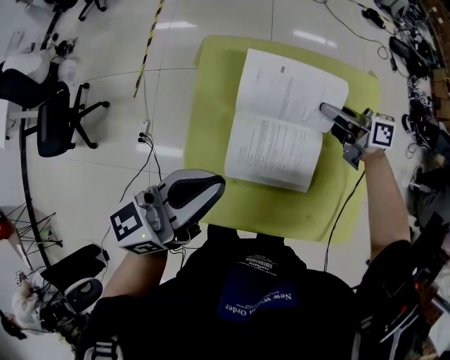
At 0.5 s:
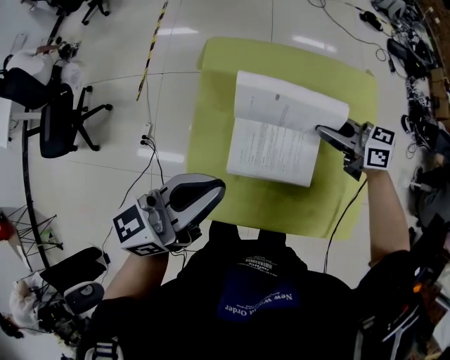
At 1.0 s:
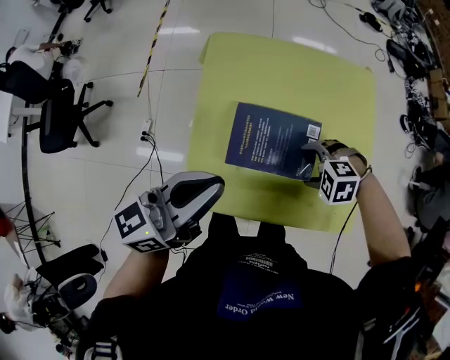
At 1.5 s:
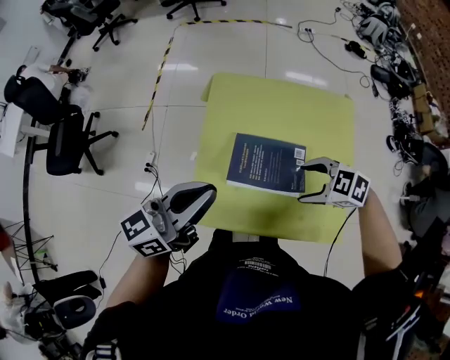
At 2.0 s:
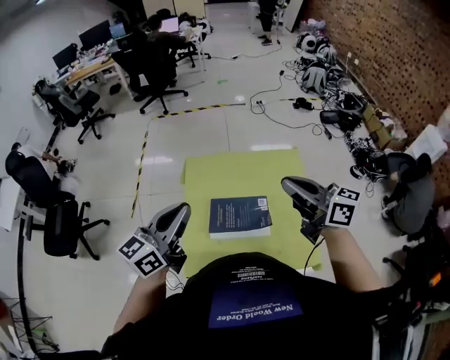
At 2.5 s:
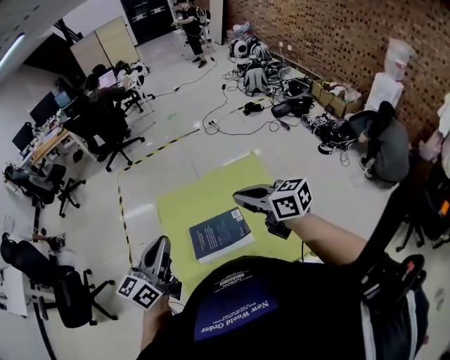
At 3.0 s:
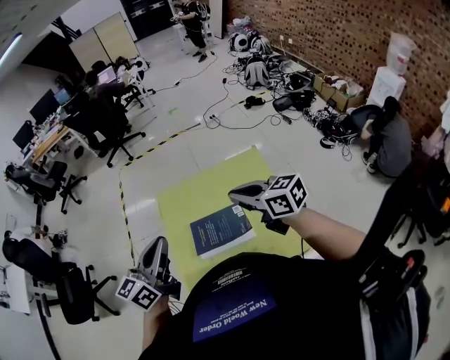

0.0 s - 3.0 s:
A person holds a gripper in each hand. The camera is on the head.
0.0 s - 1.5 s: The left gripper shifts by approximately 10 cm. The right gripper travels downward and back again, some 10 cm each way, tilts its fingers roughly 40 degrees downward, and opens.
1.5 s - 3.0 s: The right gripper is displaced upward by approximately 20 cm, tips its fingers upward by about 40 degrees, and closes its fingers. Meanwhile the left gripper goes approximately 10 cm upward.

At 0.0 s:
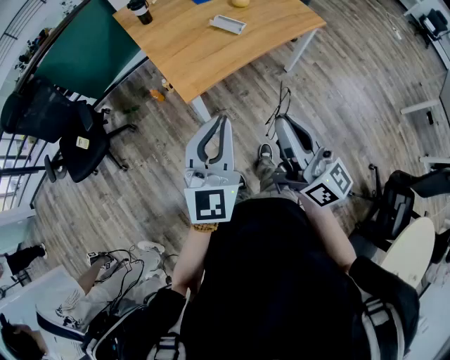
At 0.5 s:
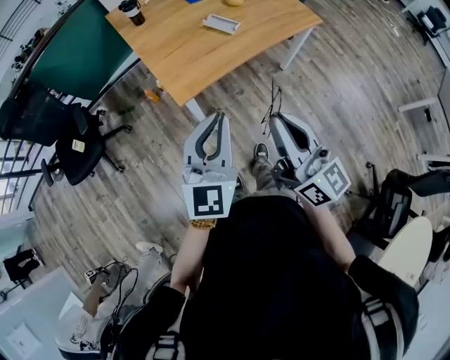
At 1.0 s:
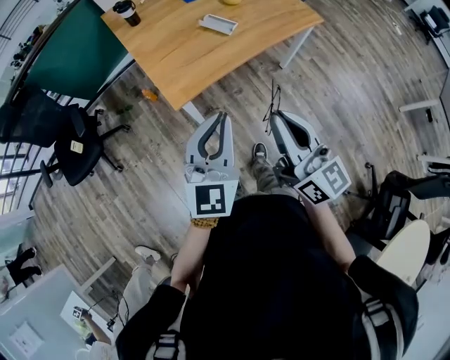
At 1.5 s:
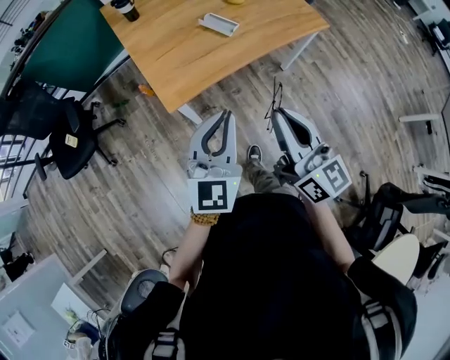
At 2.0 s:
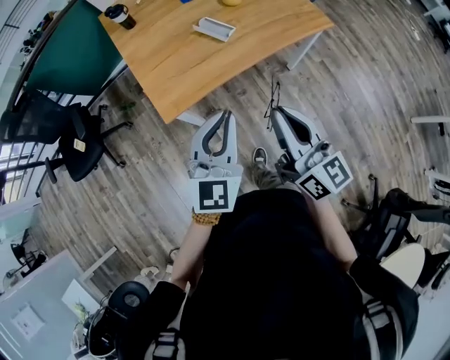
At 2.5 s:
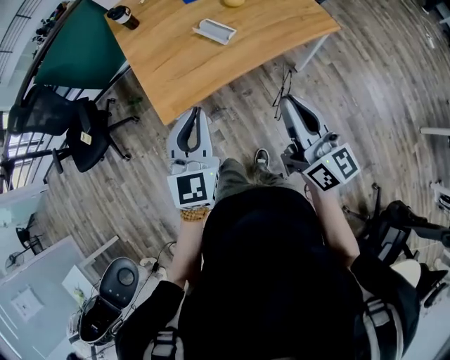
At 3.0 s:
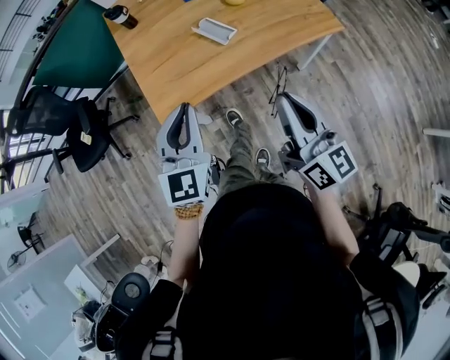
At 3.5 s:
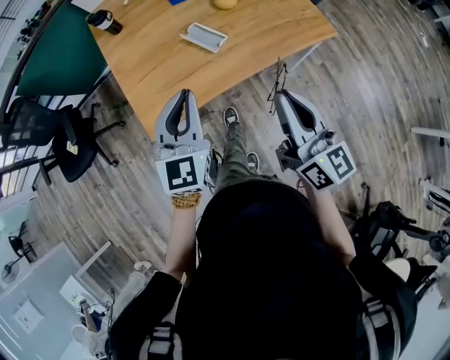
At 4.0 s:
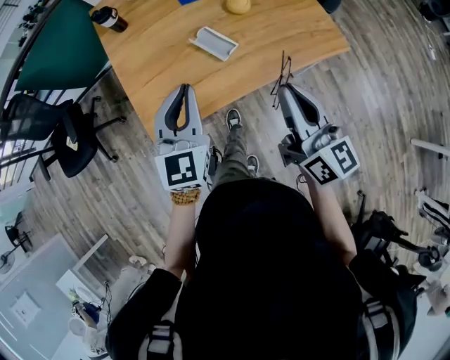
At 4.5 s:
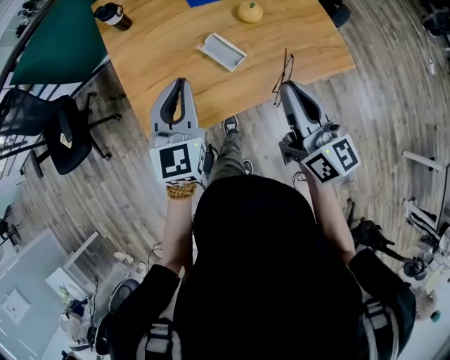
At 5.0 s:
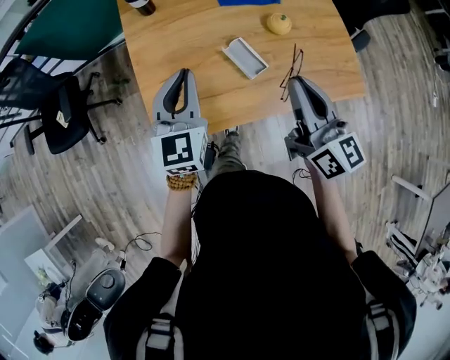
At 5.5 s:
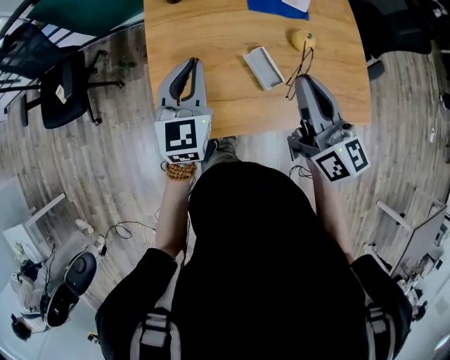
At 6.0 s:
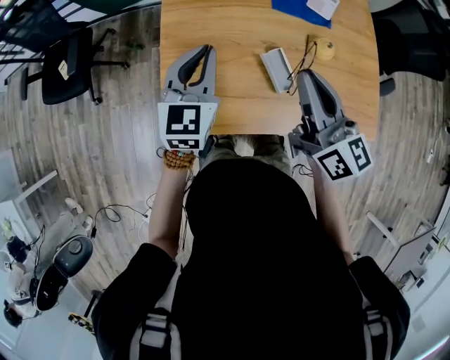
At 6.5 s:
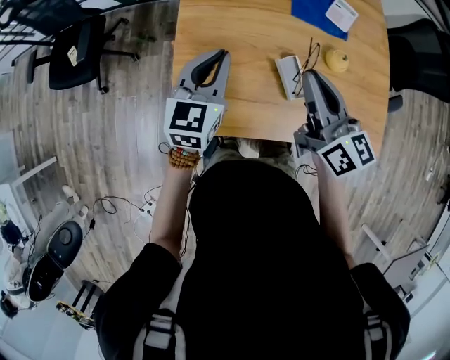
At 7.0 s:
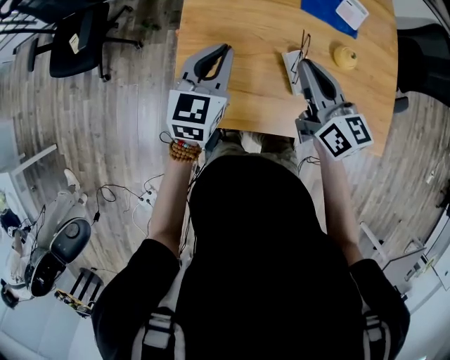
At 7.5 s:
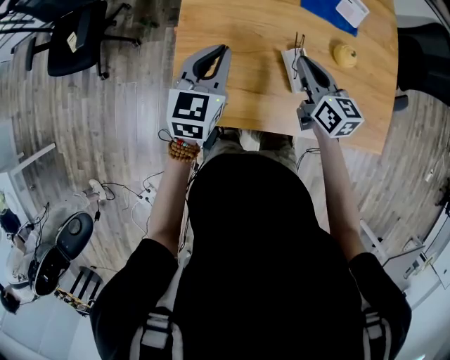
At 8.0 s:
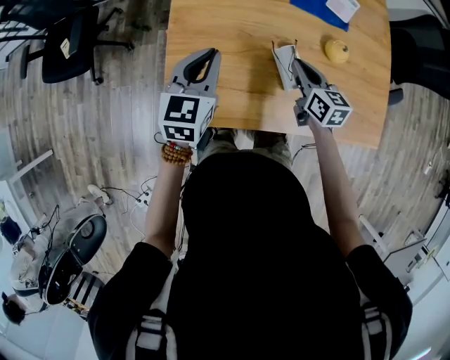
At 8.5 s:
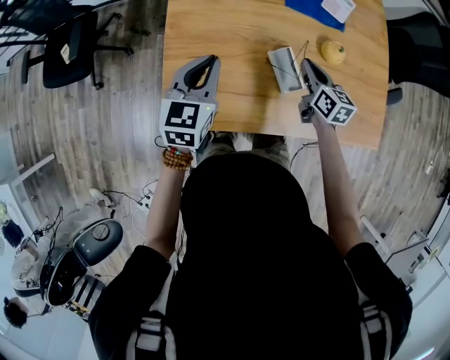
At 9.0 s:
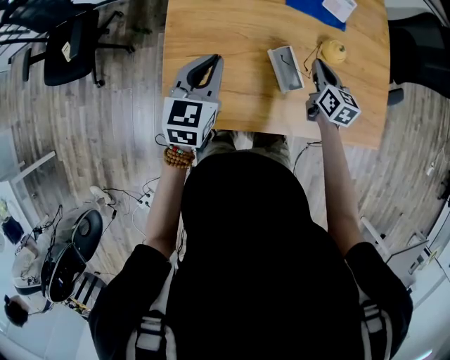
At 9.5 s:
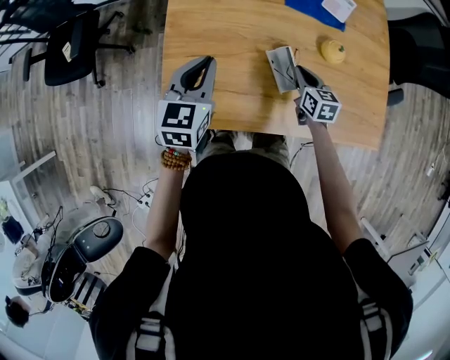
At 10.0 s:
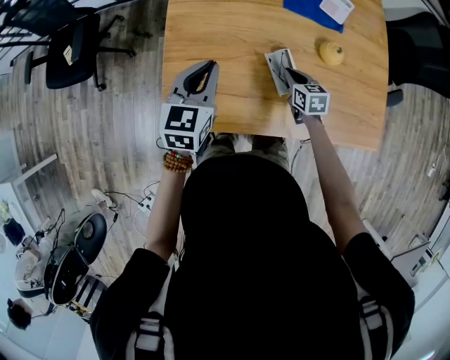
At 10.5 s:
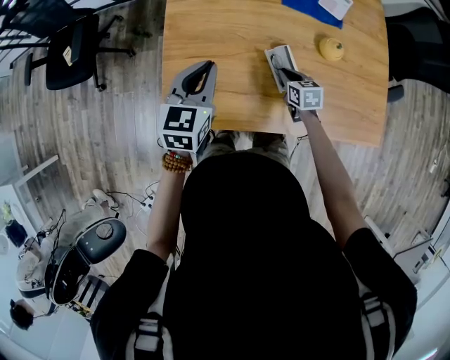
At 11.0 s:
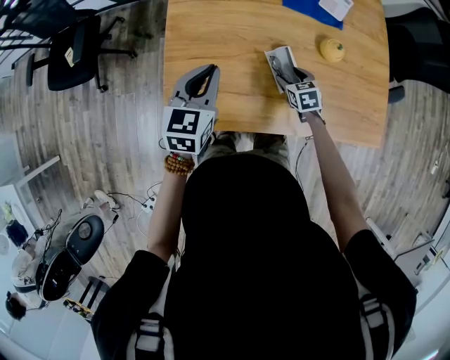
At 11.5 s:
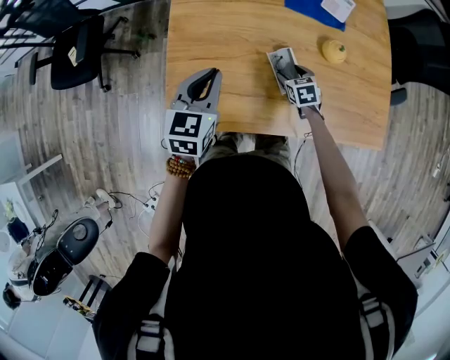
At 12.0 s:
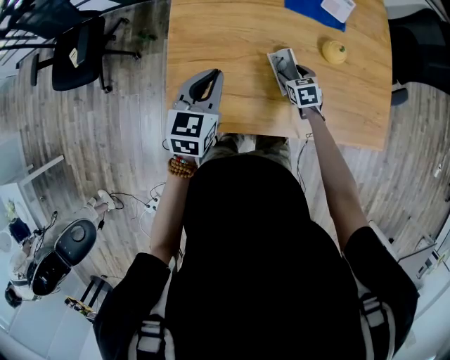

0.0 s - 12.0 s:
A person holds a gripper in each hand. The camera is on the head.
0.0 s - 2.0 s: The right gripper is displaced forward and to the right by approximately 20 cm, while the left gripper heads to the right and forward, covering roughly 20 cm.
2.0 s - 4.0 s: The left gripper goes about 25 cm forward; the right gripper shifts roughly 25 cm forward and to the right.
4.0 s - 6.0 s: The grippers both shift forward and to the left by roughly 25 cm. The right gripper swivels approximately 20 degrees.
6.0 s - 8.0 s: The left gripper is displaced downward by about 5 cm; the right gripper goes some 25 cm downward, and turns by some 30 degrees.
8.0 s - 10.0 s: The right gripper moves downward, about 10 cm.
10.0 s - 12.0 s: The right gripper opens its fingers.

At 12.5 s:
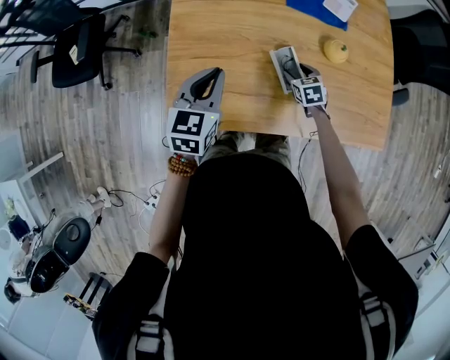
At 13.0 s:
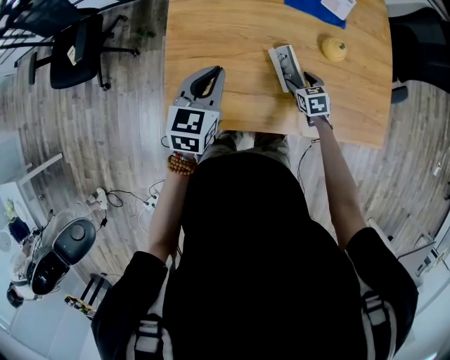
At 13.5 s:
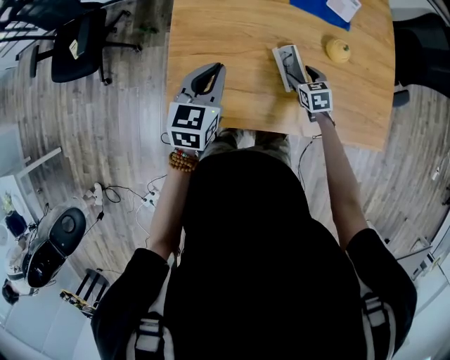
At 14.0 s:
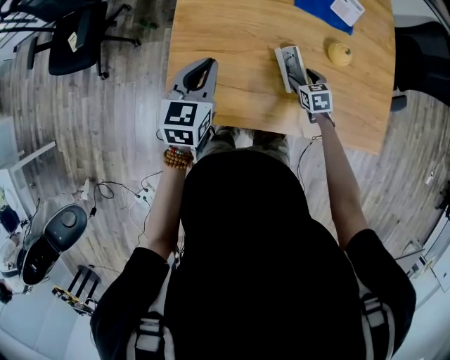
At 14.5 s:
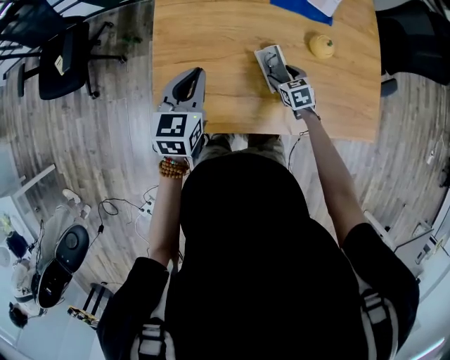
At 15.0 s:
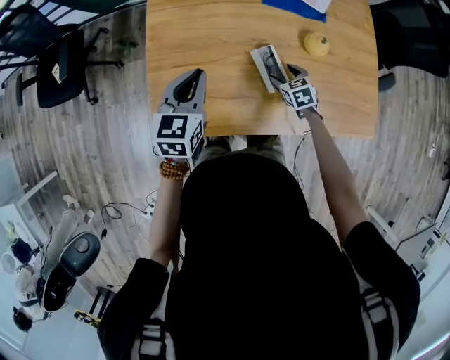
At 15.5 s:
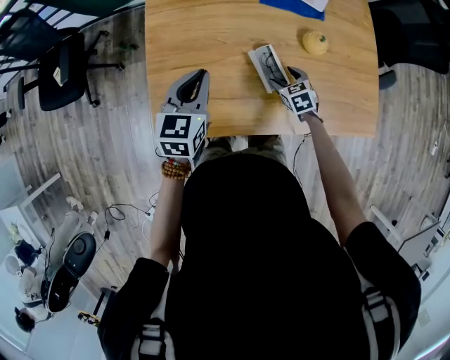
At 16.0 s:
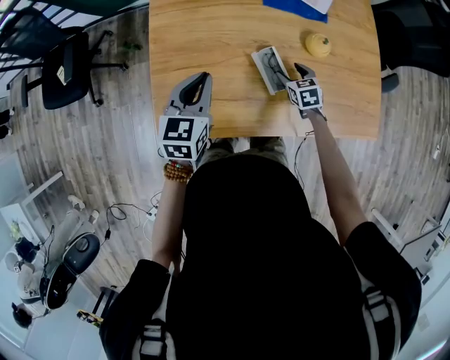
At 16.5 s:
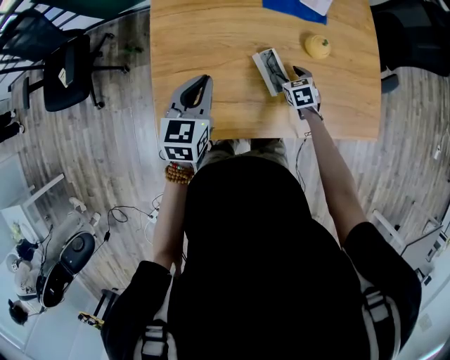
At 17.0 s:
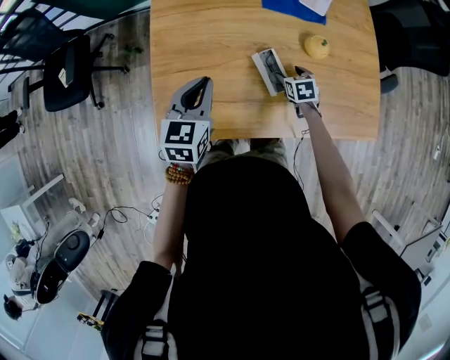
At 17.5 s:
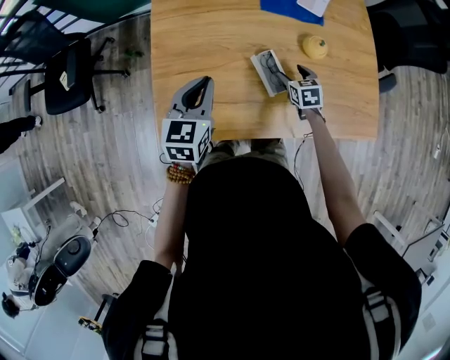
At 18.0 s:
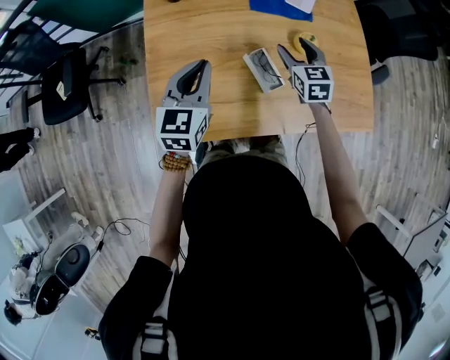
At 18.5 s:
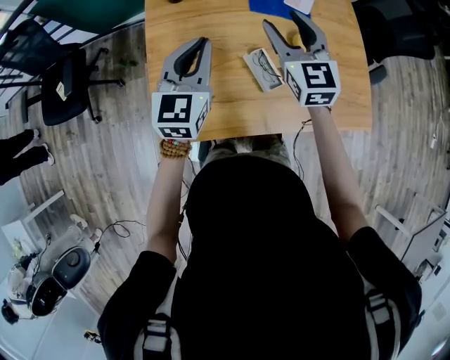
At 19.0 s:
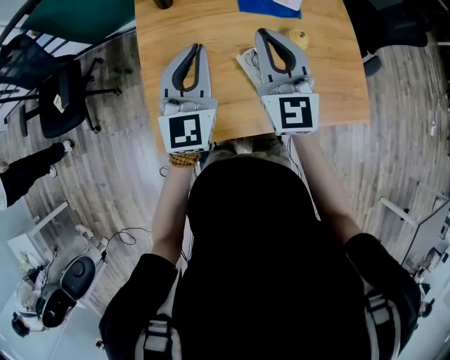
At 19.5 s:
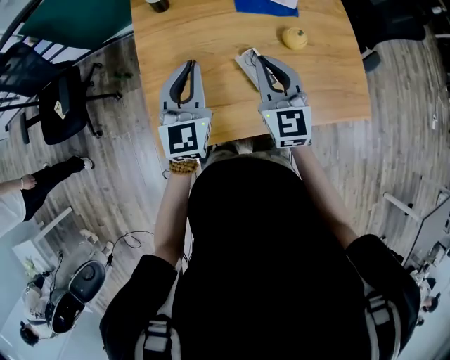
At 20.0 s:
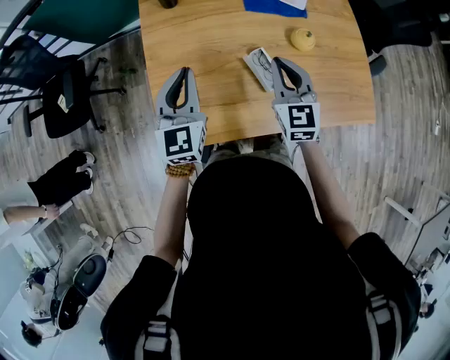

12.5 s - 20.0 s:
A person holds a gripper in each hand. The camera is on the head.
12.5 s - 16.5 s: The grippers move only a little.
16.5 s - 18.0 s: The left gripper is displaced upward by roughly 5 cm, while the right gripper moves upward, approximately 20 cm, and rotates approximately 30 degrees.
18.0 s - 20.0 s: The right gripper moves backward, upward and to the left, about 15 cm, and closes up; the left gripper moves some 10 cm upward and comes back.

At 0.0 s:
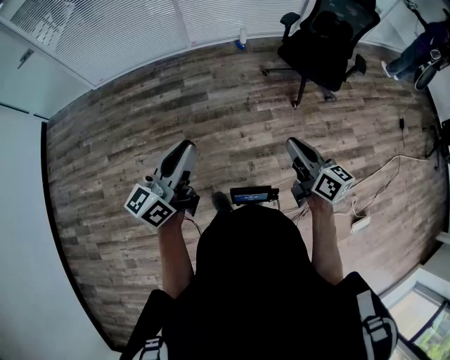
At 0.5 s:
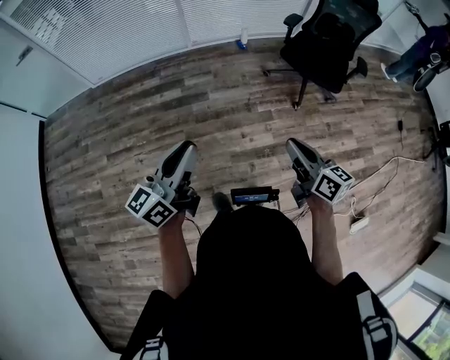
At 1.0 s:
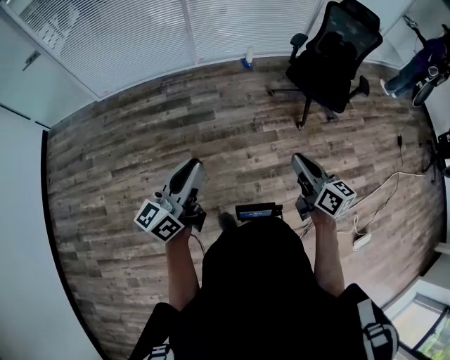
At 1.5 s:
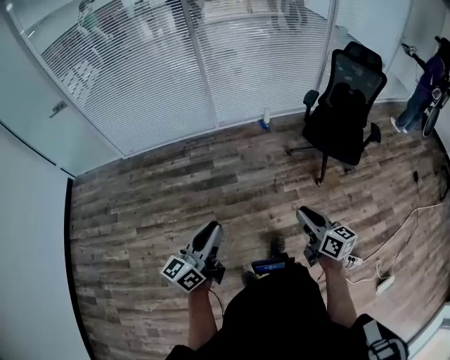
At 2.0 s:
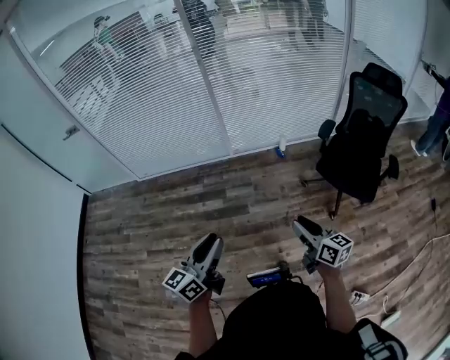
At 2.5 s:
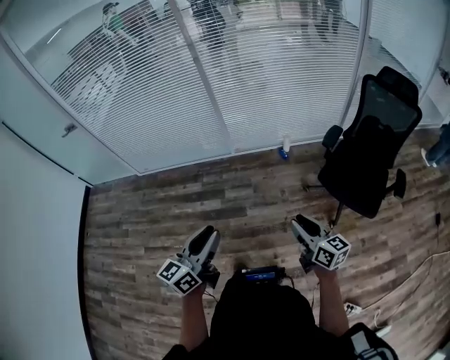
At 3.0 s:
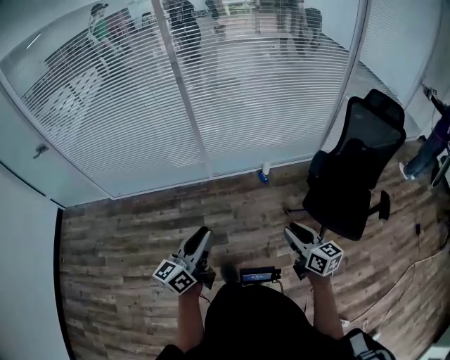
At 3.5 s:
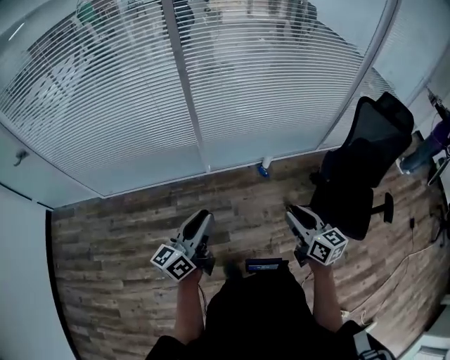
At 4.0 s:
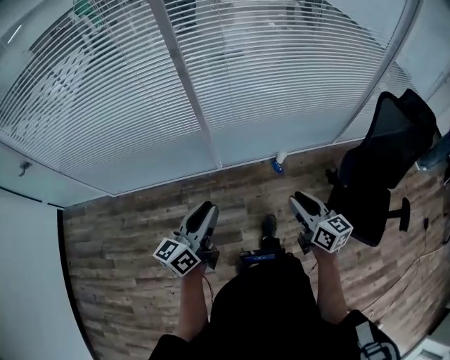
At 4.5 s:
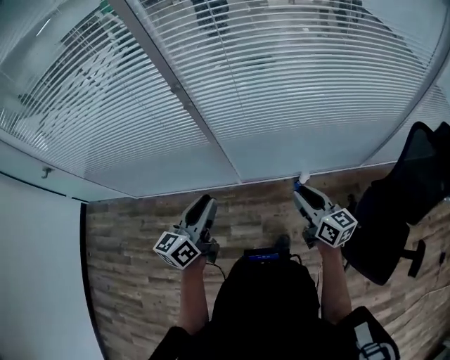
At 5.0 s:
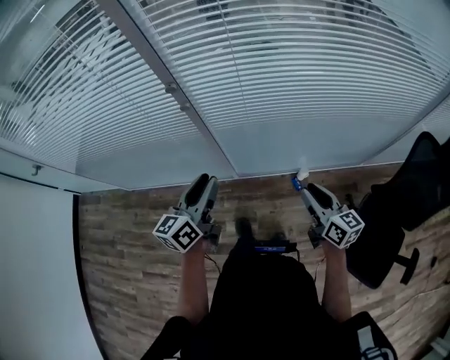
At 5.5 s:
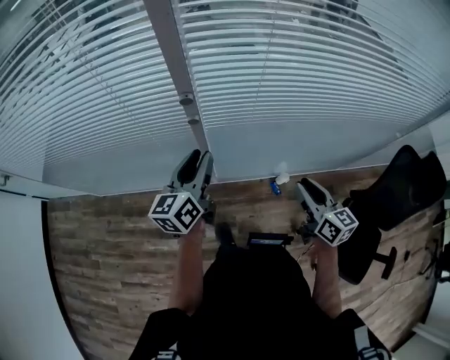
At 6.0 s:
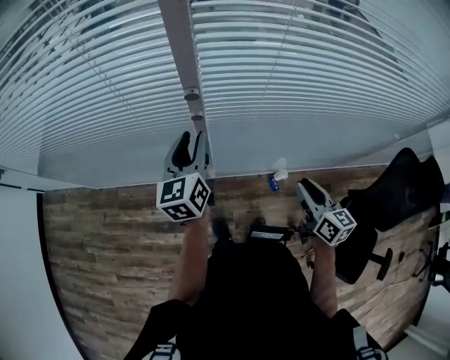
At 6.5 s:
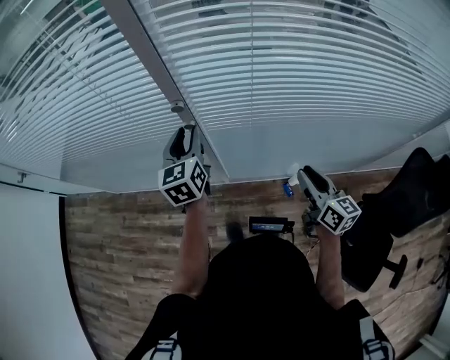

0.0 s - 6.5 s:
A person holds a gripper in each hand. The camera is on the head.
0.0 s - 2.0 s: The two grippers go approximately 20 cm forward.
2.0 s - 4.5 s: Both grippers are carried forward, some 60 cm.
4.5 s - 6.5 s: The right gripper travels forward by about 15 cm, while the left gripper goes about 25 cm forward, and rotates about 30 degrees.
